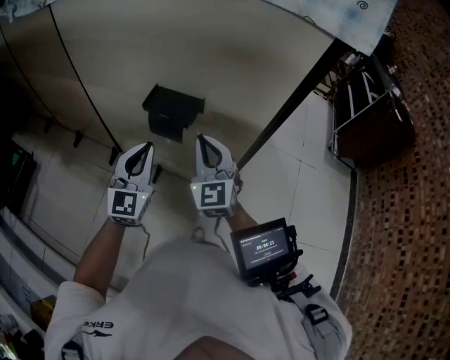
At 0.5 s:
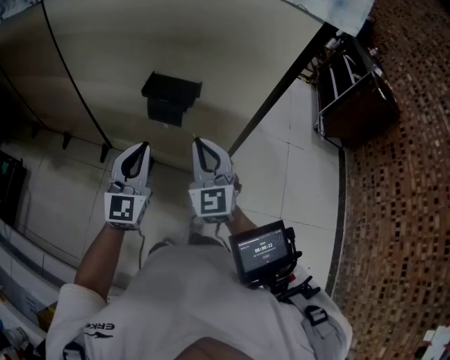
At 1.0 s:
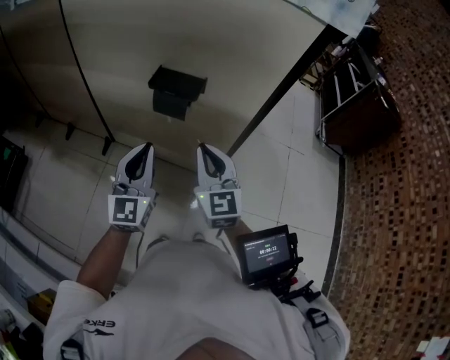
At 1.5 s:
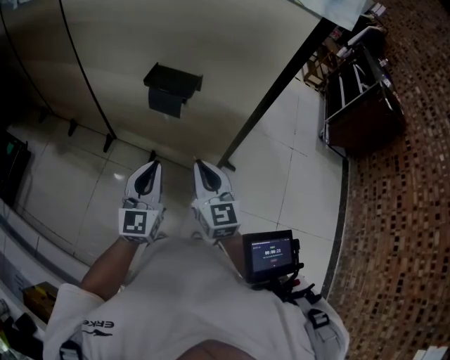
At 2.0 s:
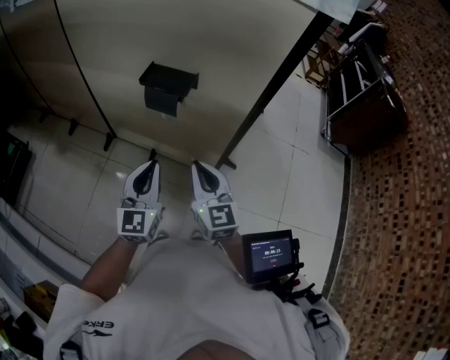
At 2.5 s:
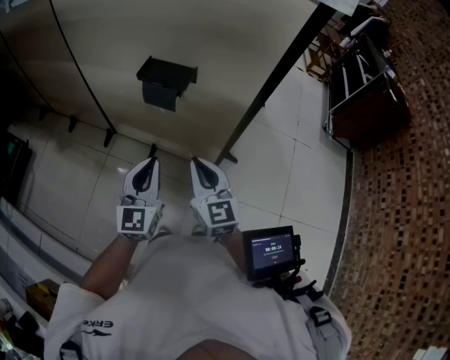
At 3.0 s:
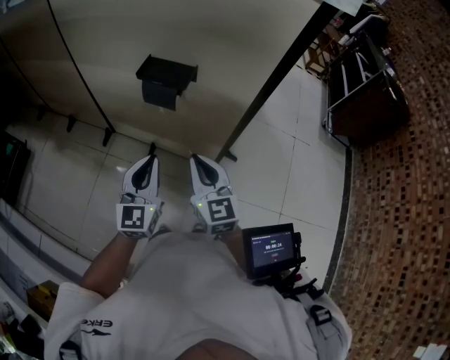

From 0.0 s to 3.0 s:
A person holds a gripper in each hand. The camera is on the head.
From 0.0 s to 1.5 s: The grippers both shift backward by roughly 15 cm. The right gripper turns by some 30 degrees.
From 1.5 s to 3.0 s: The grippers make only small movements.

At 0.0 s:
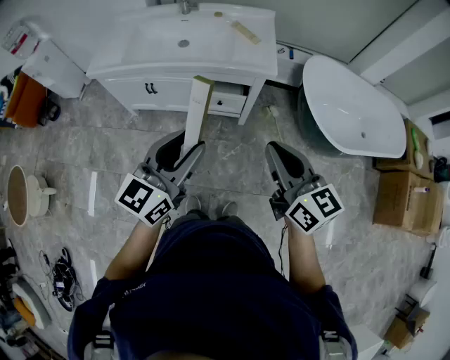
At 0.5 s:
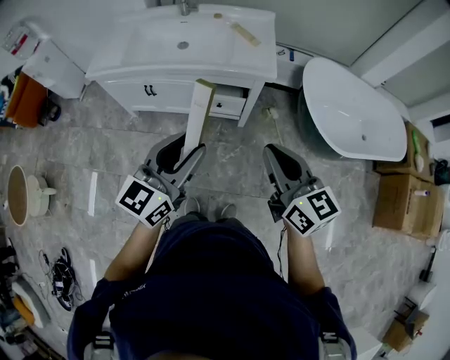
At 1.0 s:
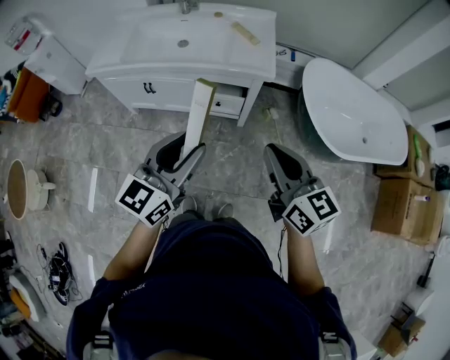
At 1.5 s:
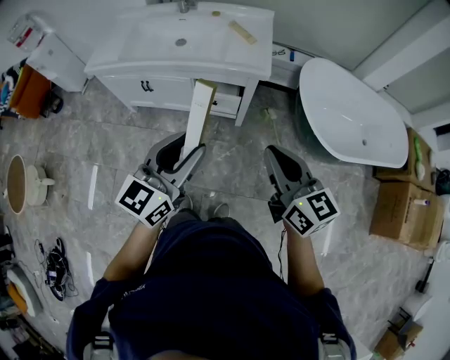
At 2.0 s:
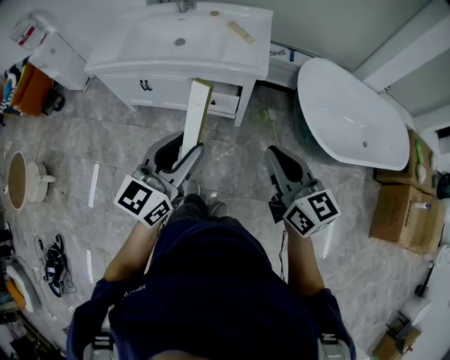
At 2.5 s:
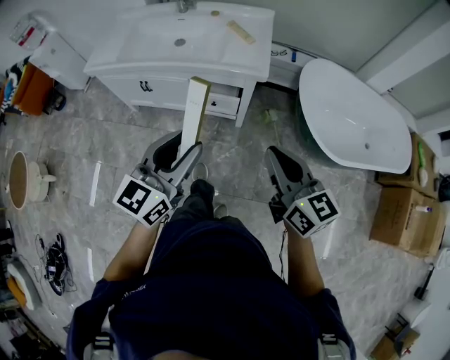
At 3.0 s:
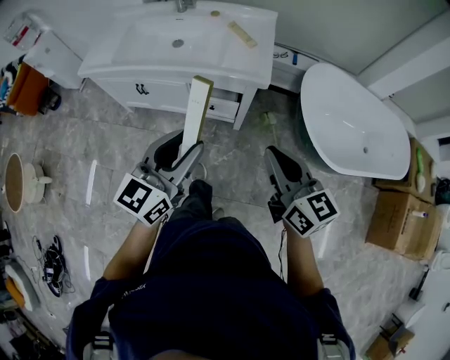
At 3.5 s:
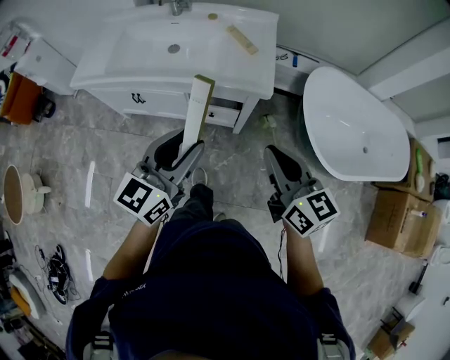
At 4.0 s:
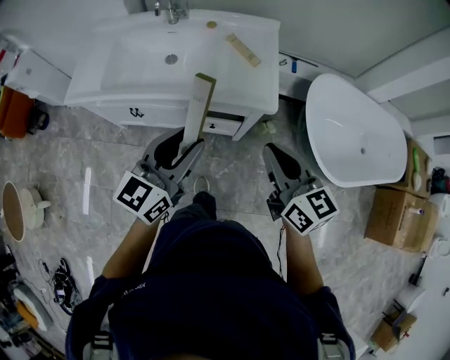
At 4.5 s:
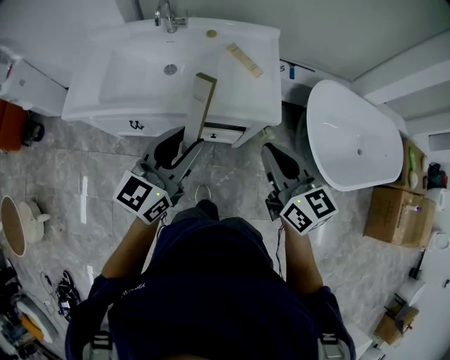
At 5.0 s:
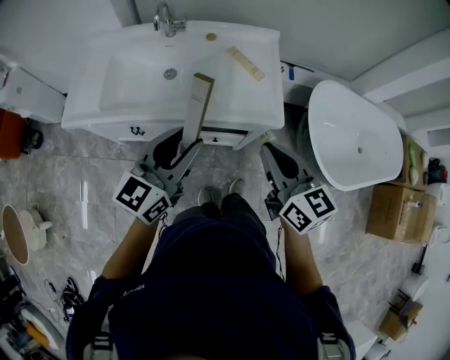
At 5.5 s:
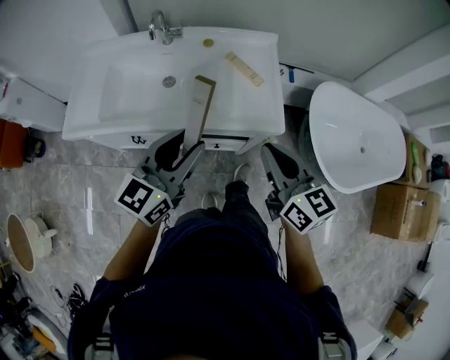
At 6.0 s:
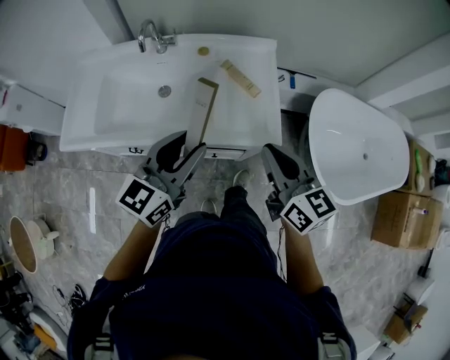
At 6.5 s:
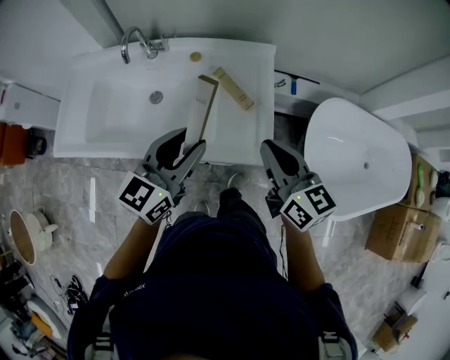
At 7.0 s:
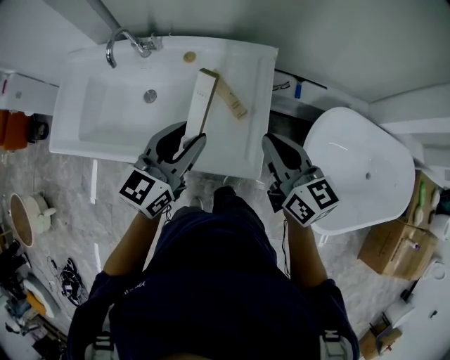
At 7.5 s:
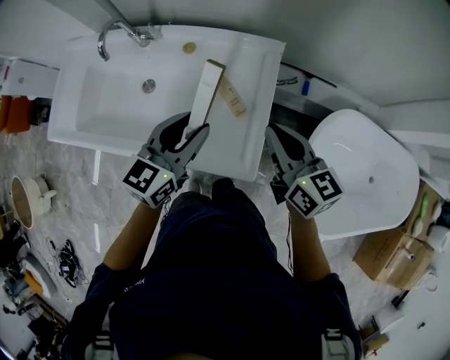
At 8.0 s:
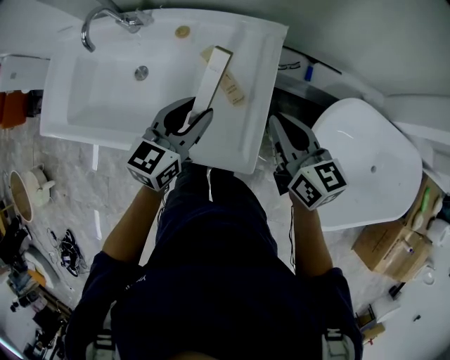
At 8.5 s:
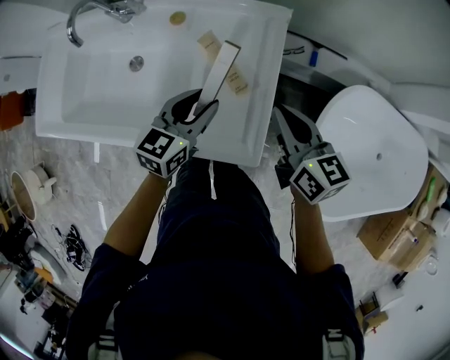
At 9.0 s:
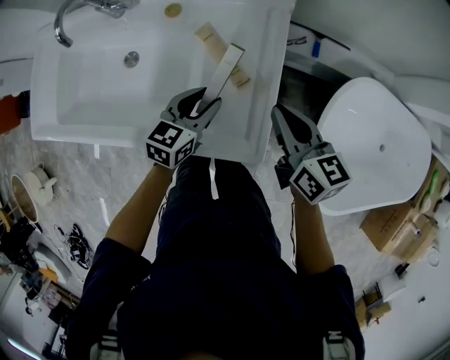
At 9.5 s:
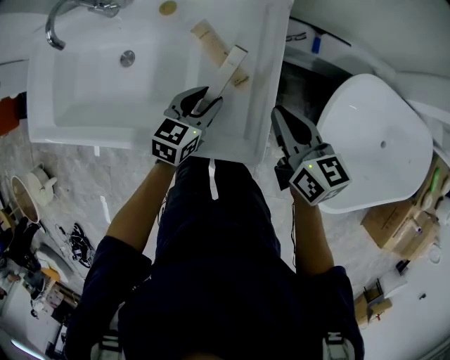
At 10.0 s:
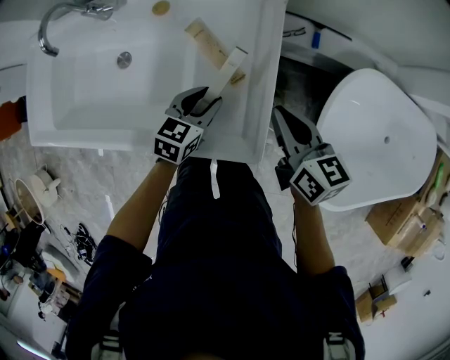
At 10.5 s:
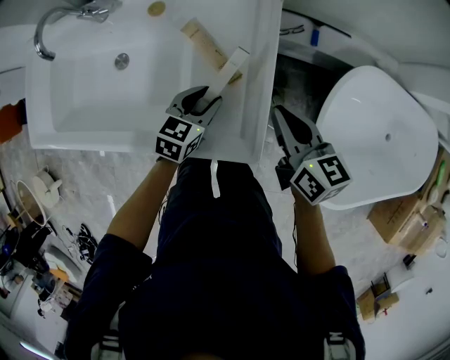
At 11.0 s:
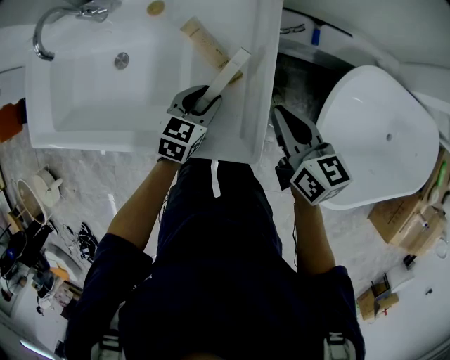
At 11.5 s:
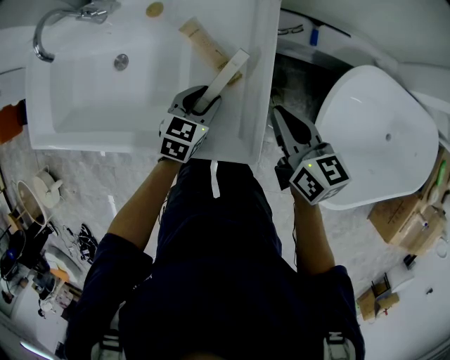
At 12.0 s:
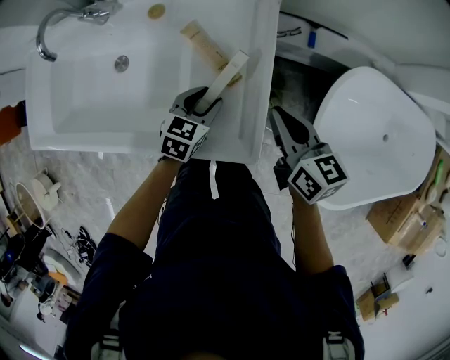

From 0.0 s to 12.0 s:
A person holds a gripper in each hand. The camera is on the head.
From 0.0 s to 2.0 s: The grippers both shift to the right by about 10 cm.
From 2.0 s to 4.0 s: Both grippers move forward, roughly 20 cm.
From 4.0 s to 6.0 s: The two grippers go some 15 cm forward.
From 6.0 s to 8.0 s: Both grippers travel together forward, to the right and downward, about 30 cm.
From 8.0 s to 10.0 s: The left gripper travels downward by approximately 15 cm, and changes its angle by some 20 degrees; the right gripper goes roughly 10 cm downward.
From 10.0 s to 12.0 s: There are only small adjustments of the grippers.

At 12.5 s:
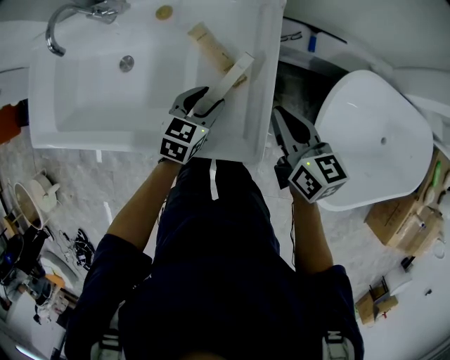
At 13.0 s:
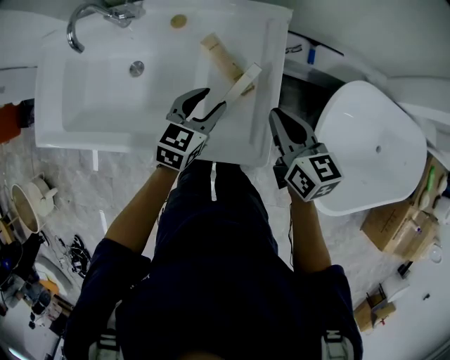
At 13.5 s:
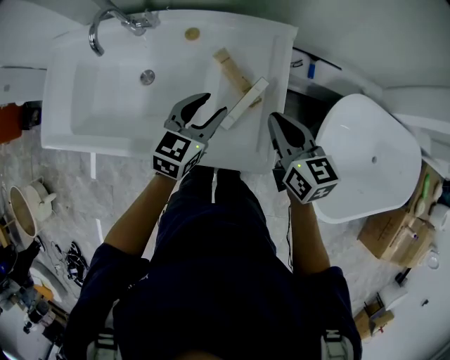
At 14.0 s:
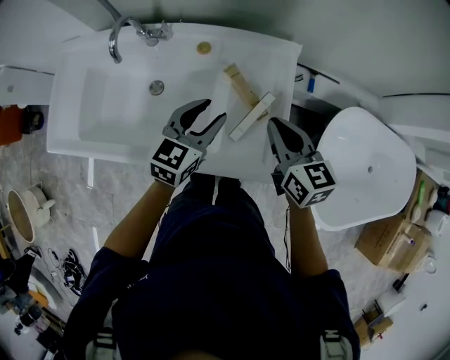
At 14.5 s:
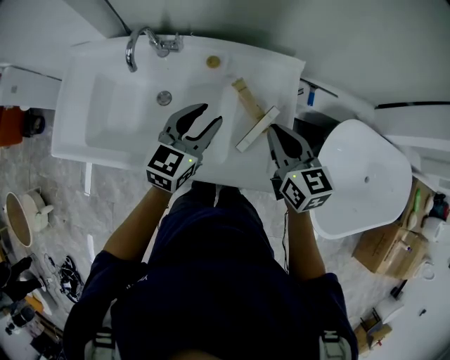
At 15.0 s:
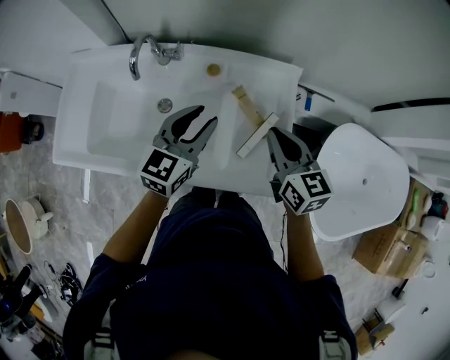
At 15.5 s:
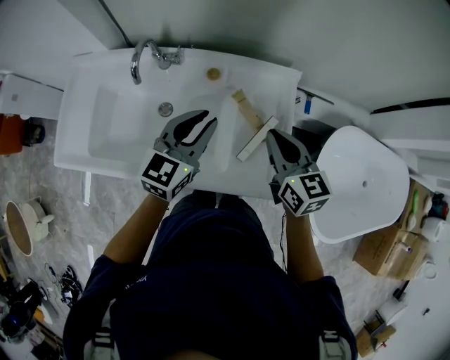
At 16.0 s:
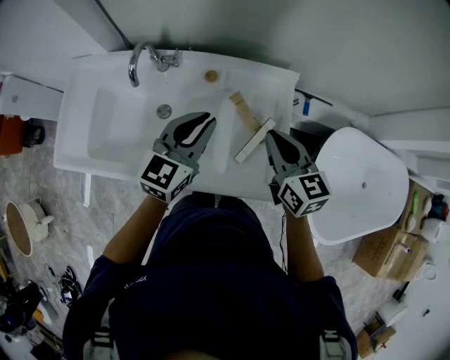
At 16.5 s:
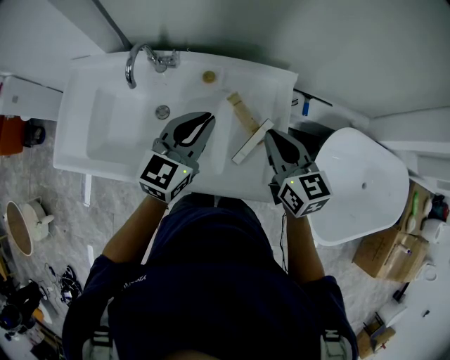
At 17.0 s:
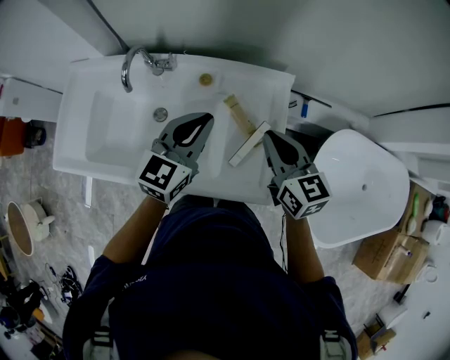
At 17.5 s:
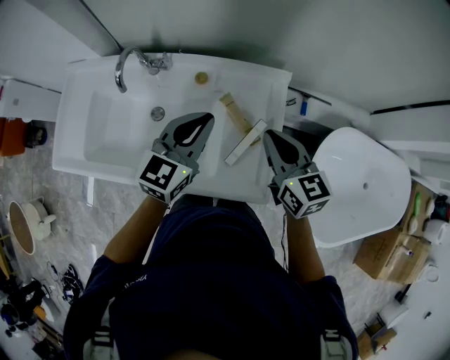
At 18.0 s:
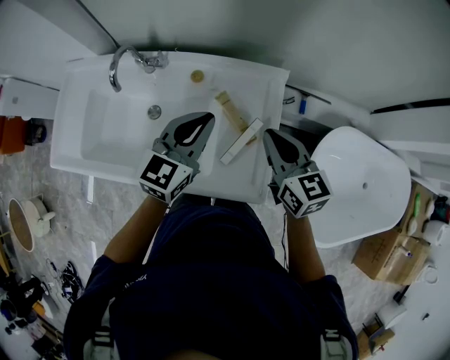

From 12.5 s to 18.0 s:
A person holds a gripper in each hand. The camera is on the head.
From 12.5 s to 14.5 s: The right gripper goes some 15 cm to the left and upward, while the left gripper travels upward and to the left by some 25 cm, and swivels some 20 degrees.
From 14.5 s to 16.0 s: The left gripper moves approximately 5 cm, and closes.
From 16.0 s to 18.0 s: The left gripper moves to the right, roughly 5 cm. Meanwhile the right gripper ends up approximately 5 cm from where it was.

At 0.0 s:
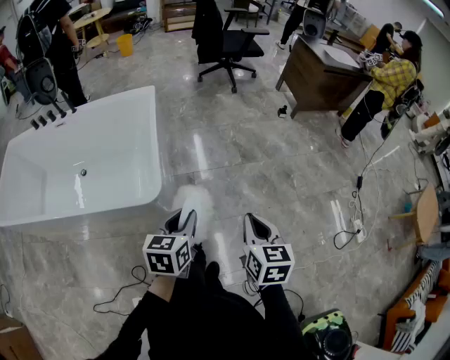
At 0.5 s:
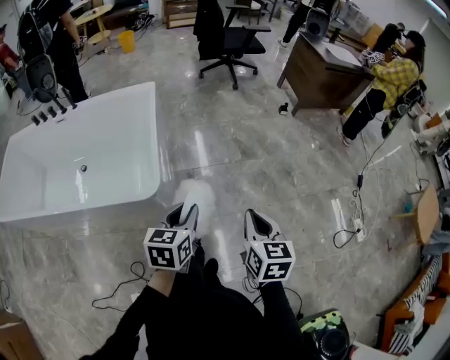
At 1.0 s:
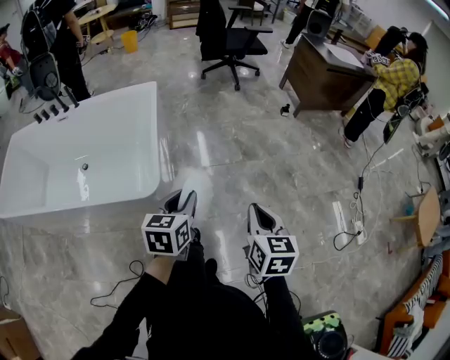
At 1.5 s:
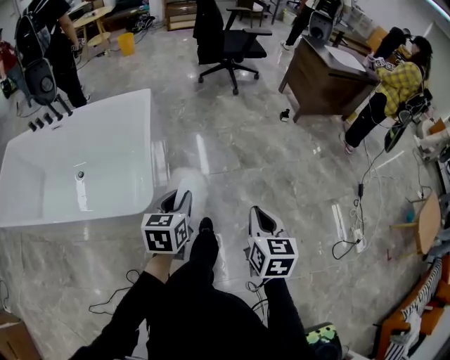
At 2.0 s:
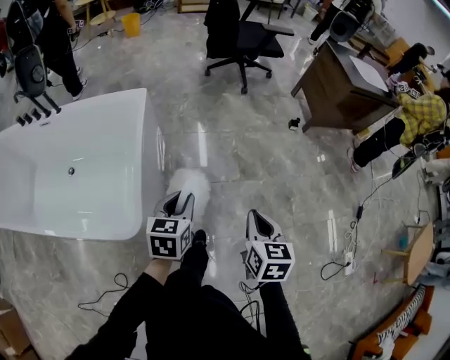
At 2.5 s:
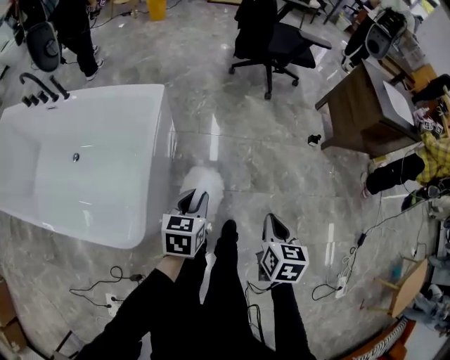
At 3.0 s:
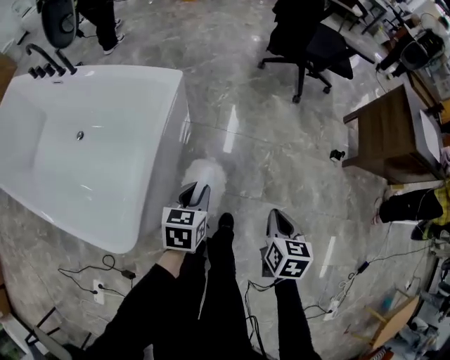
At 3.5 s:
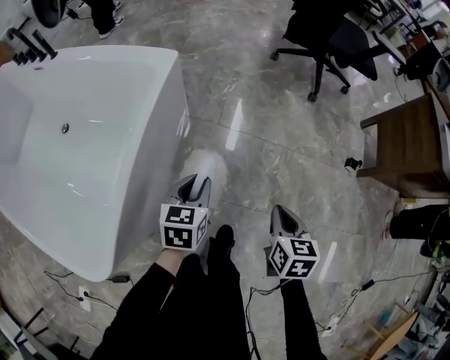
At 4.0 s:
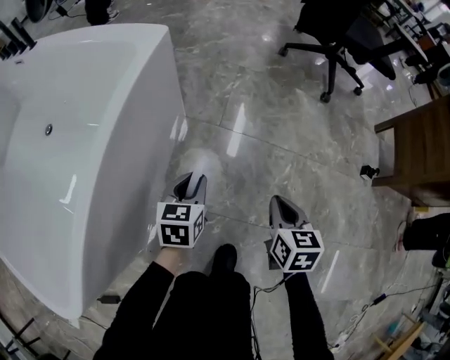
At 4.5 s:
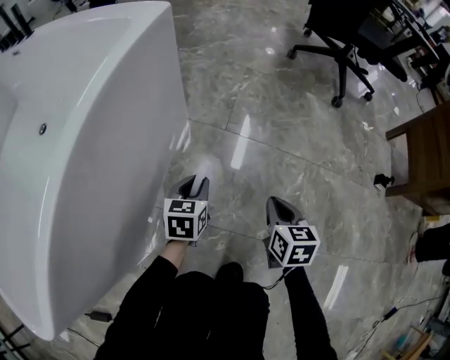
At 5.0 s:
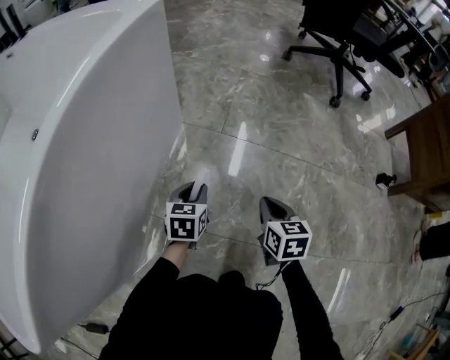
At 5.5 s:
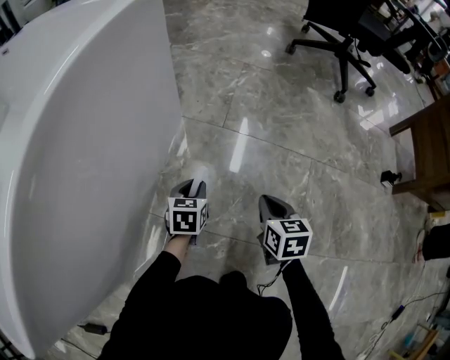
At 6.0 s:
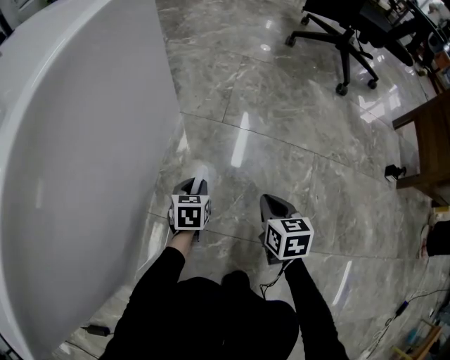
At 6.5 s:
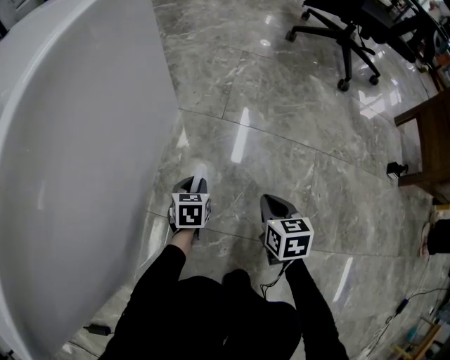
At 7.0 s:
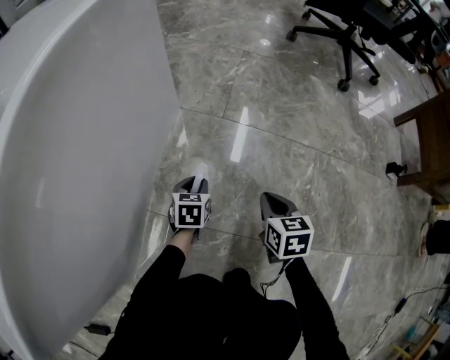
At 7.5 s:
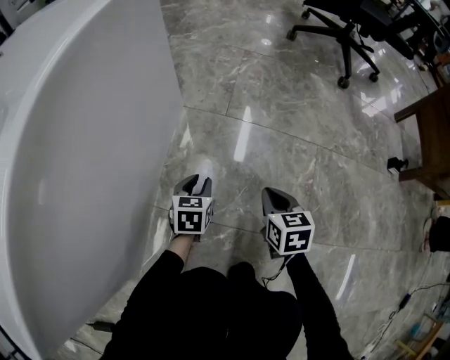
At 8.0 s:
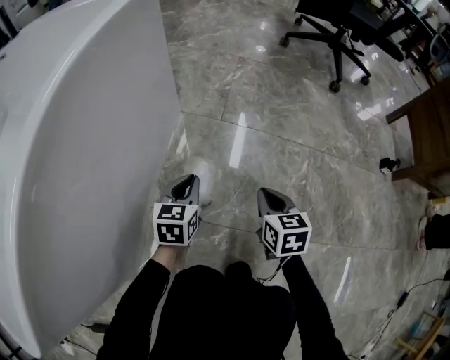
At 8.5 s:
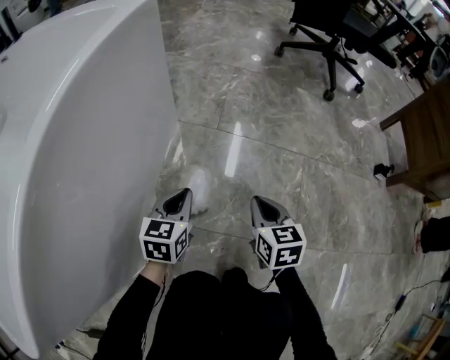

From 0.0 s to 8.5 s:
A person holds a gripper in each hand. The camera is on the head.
From 0.0 s to 2.0 s: Both grippers travel together forward, roughly 25 cm.
From 2.0 s to 4.0 s: The two grippers go about 50 cm downward and forward. The right gripper turns by about 20 degrees. The left gripper turns by some 20 degrees.
From 4.0 s to 6.5 s: Both grippers move downward, approximately 25 cm.
From 6.5 s to 8.5 s: The right gripper is displaced upward by roughly 10 cm; the left gripper is displaced upward by roughly 15 cm, and closes its fingers.
